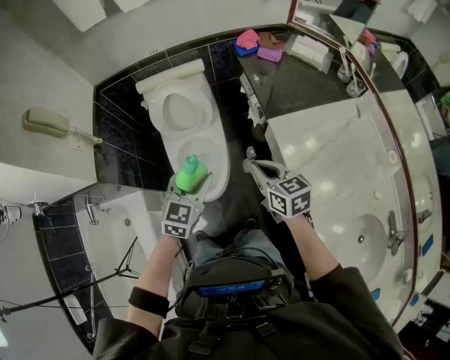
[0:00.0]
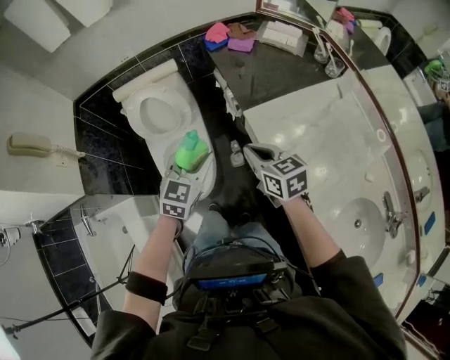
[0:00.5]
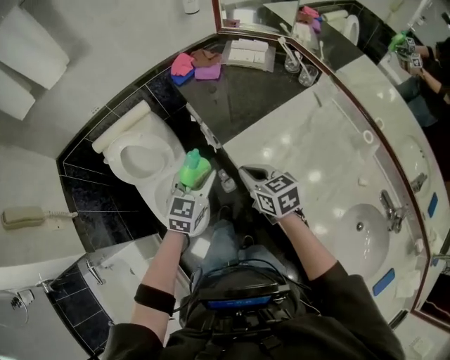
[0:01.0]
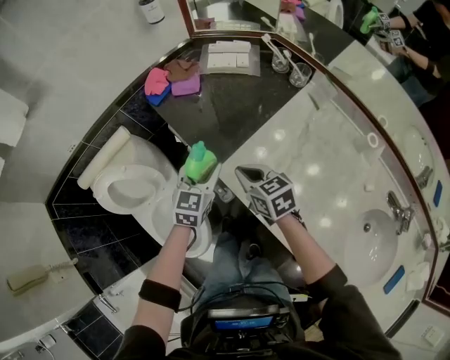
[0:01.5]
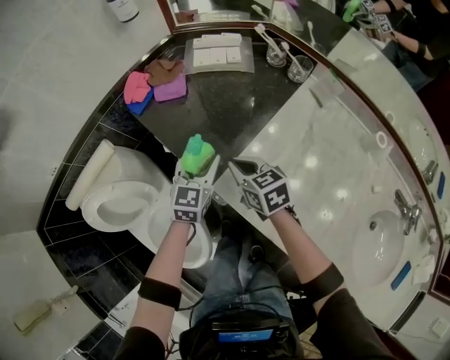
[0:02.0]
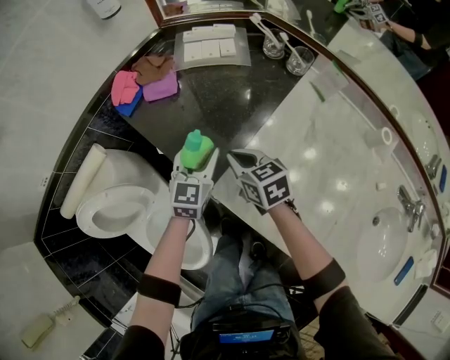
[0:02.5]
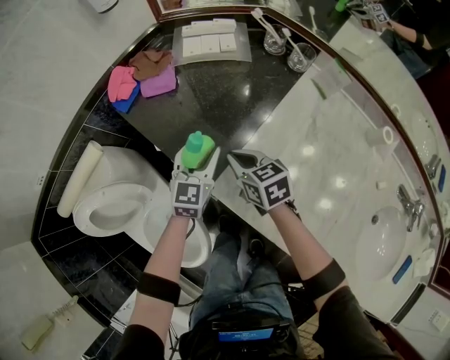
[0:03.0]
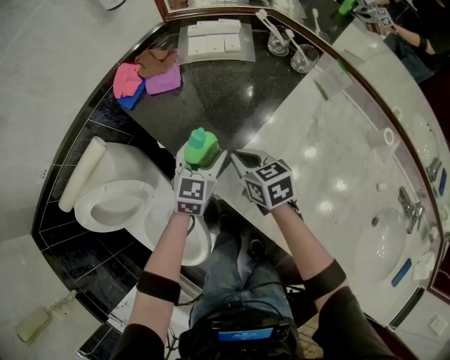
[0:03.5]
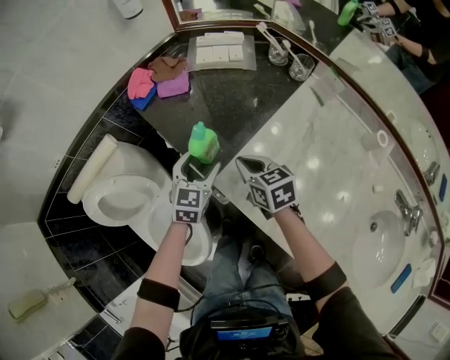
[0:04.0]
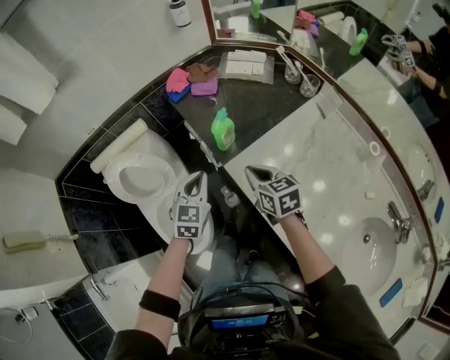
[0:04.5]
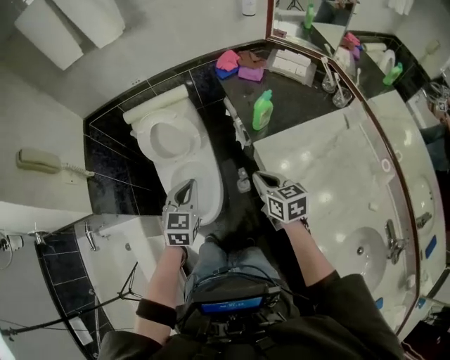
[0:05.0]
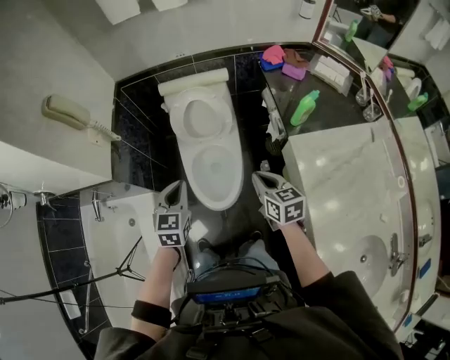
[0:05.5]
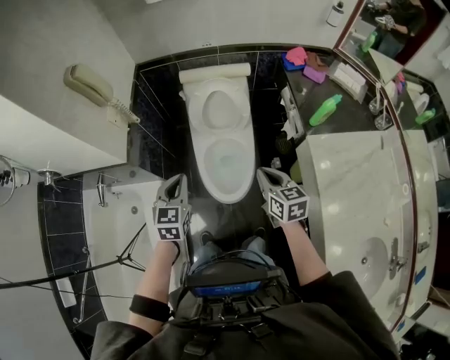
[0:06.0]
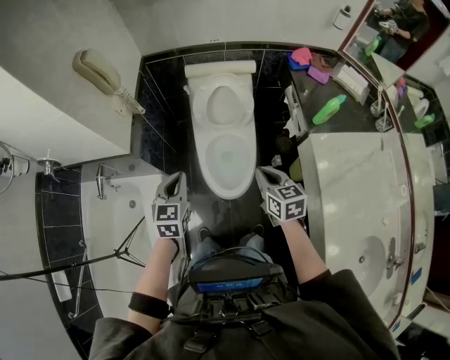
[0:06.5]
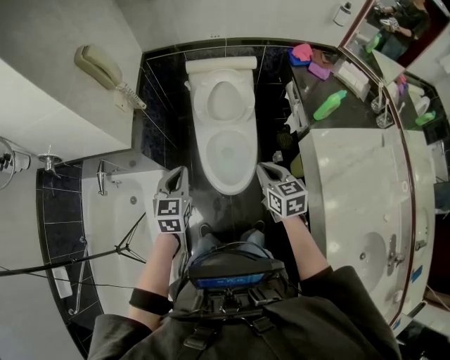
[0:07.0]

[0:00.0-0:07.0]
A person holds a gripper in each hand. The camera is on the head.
0:00.0 to 0:02.0: The left gripper shifts by roughly 50 cm, and turns by some 30 degrees; the right gripper moves approximately 35 cm, and changes its angle by approximately 30 degrees.
0:02.0 to 0:03.5: The left gripper changes place by some 5 cm, and opens its fingers.
0:03.5 to 0:05.0: The right gripper moves approximately 30 cm, and rotates roughly 20 degrees; the left gripper ends up some 40 cm from where it was, turns by roughly 40 degrees, and closes its fingers.
0:05.0 to 0:07.0: Both grippers move to the left, some 30 cm. The left gripper turns by roughly 20 degrees.

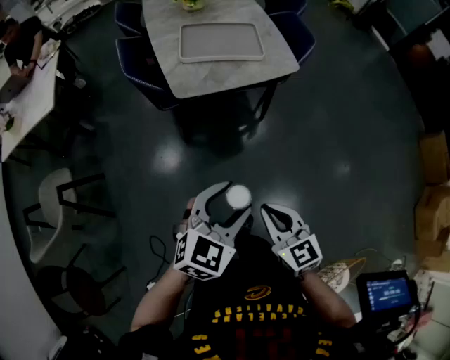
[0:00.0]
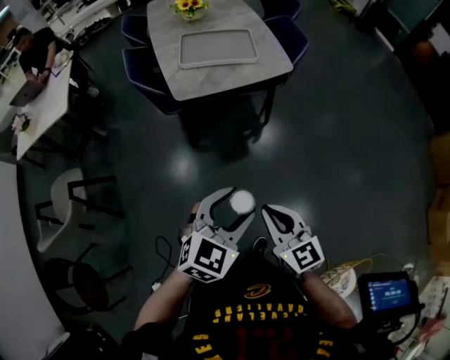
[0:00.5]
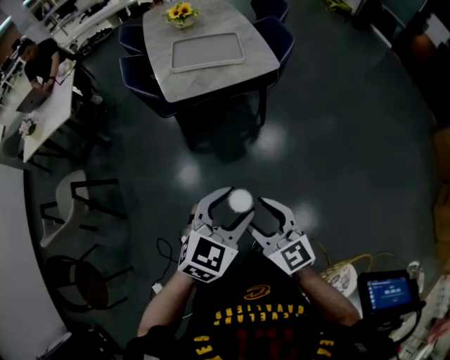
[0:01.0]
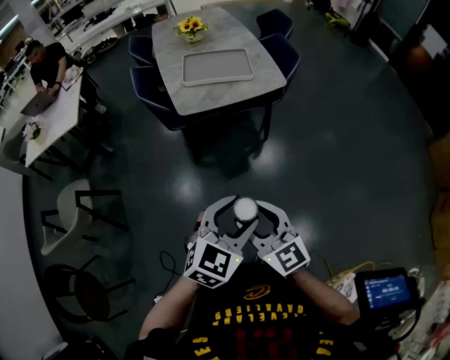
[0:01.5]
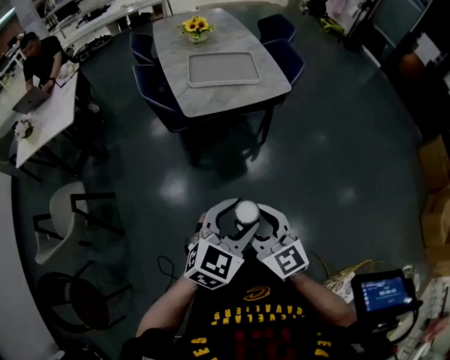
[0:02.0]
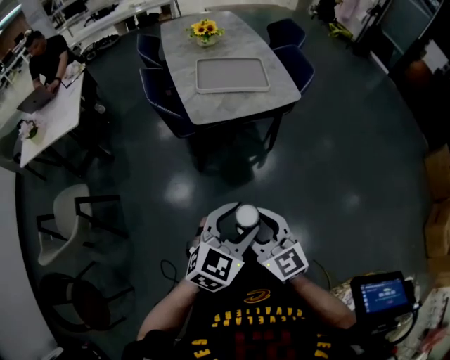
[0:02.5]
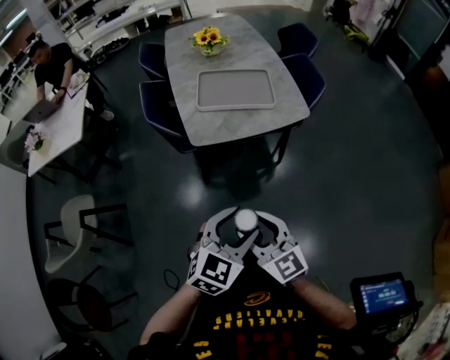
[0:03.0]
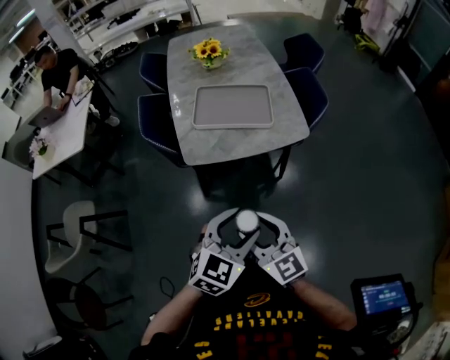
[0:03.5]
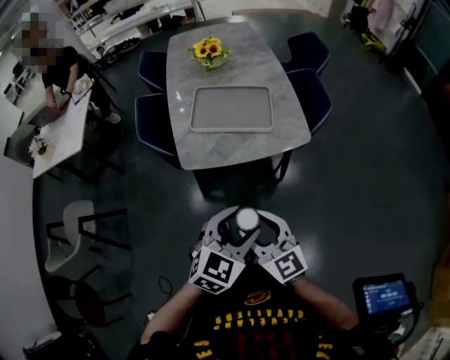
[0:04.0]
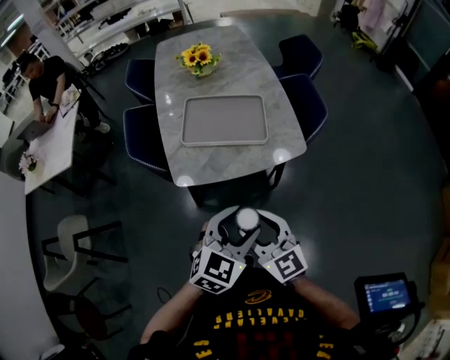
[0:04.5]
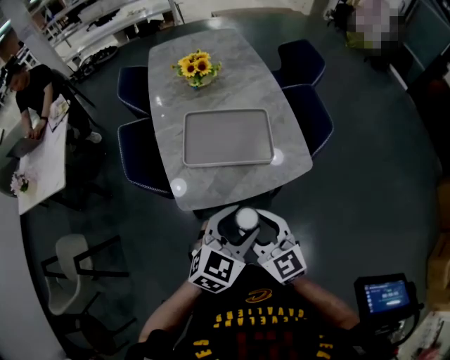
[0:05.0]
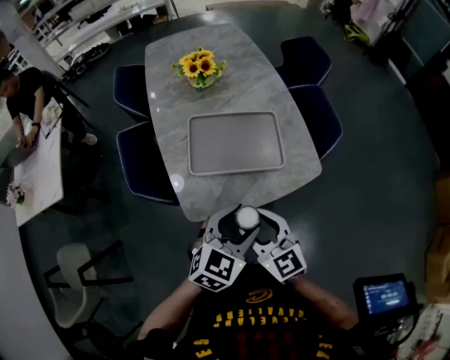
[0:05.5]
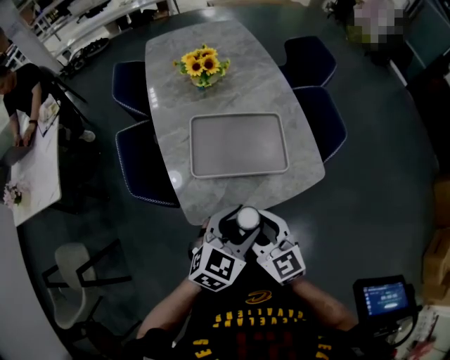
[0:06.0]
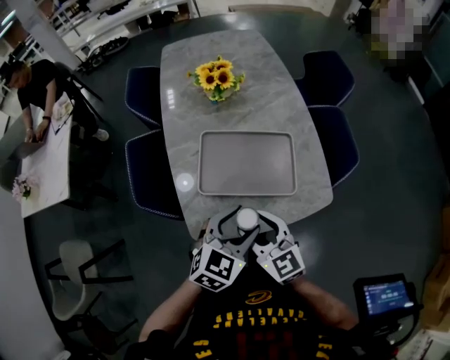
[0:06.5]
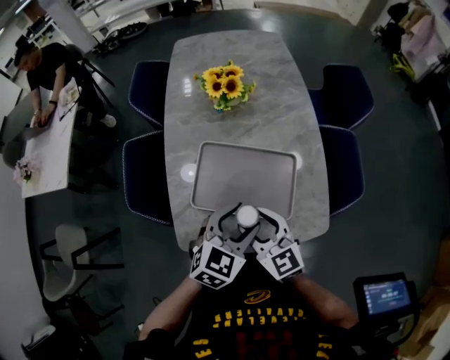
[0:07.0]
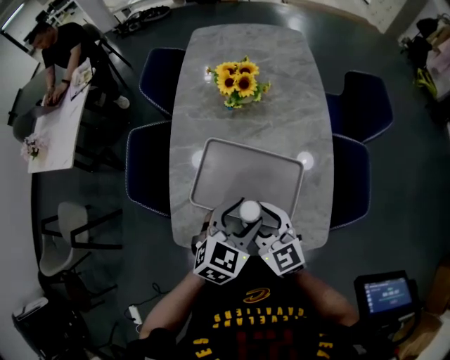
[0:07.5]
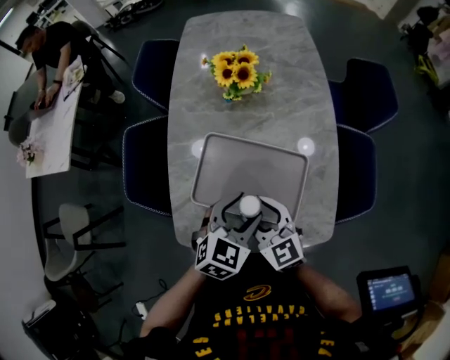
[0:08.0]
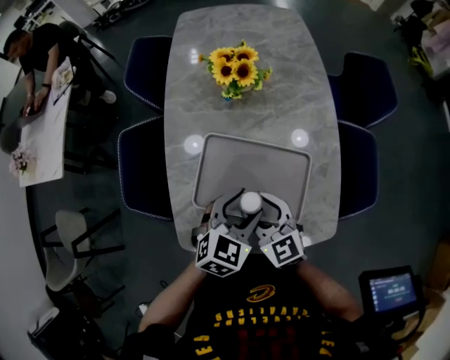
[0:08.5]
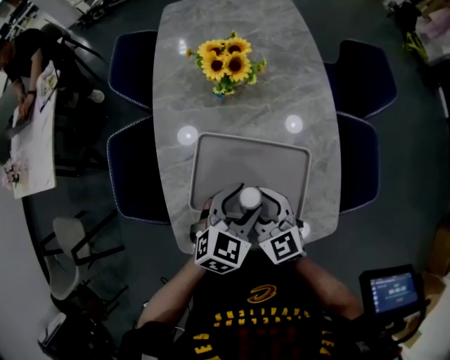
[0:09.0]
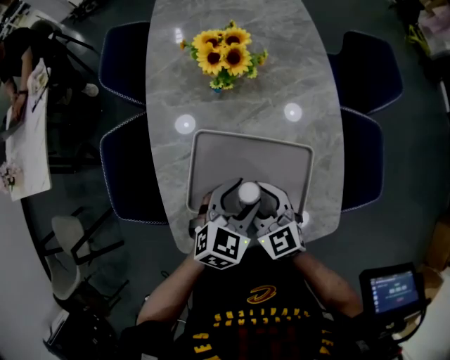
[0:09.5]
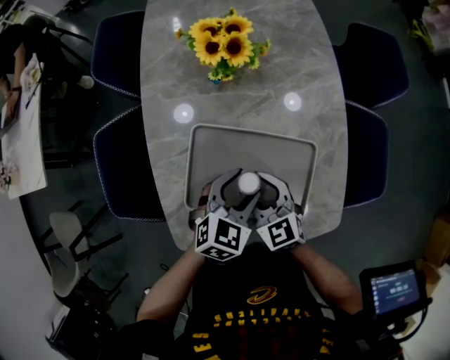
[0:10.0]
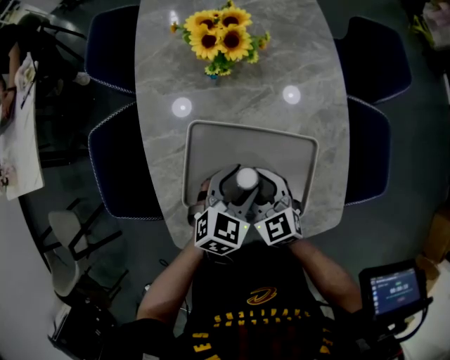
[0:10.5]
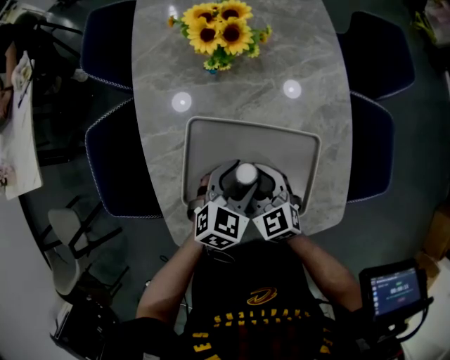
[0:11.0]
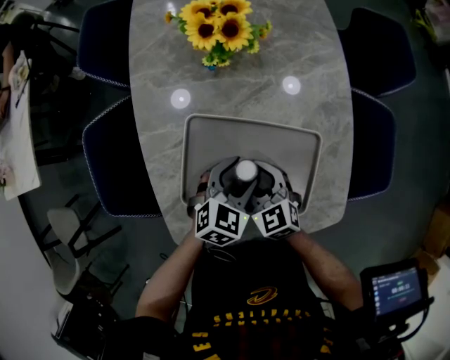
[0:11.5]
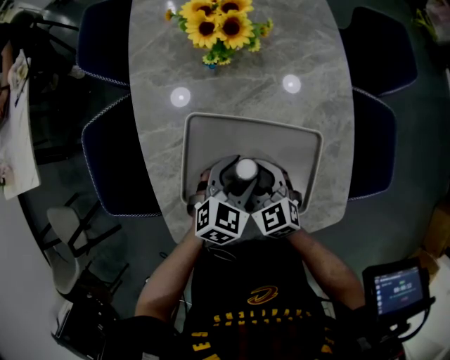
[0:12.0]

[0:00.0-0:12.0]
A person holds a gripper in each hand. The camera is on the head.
0:00.0 to 0:02.0: The left gripper goes about 10 cm backward, and reaches approximately 10 cm to the right, then returns. Meanwhile the right gripper moves to the left, upward and backward, roughly 10 cm, and opens.
0:02.0 to 0:04.0: The two grippers go about 30 cm forward and to the right.
0:04.0 to 0:06.0: Both grippers move forward and to the left, some 25 cm.
0:06.0 to 0:08.0: Both grippers travel together forward, approximately 20 cm. The right gripper swivels approximately 20 degrees. The left gripper changes its angle by approximately 20 degrees.
0:08.0 to 0:10.0: The grippers both shift downward and forward by approximately 10 cm.
0:10.0 to 0:12.0: The grippers move only a little.

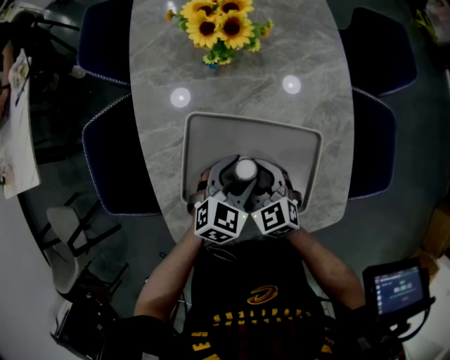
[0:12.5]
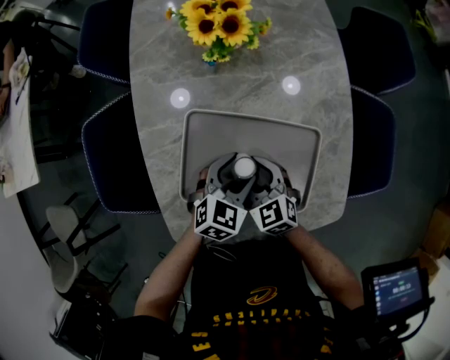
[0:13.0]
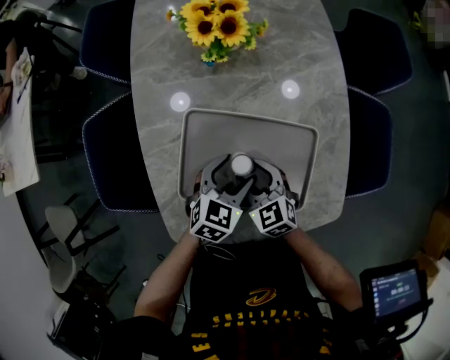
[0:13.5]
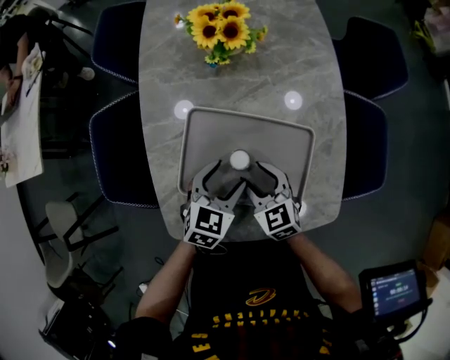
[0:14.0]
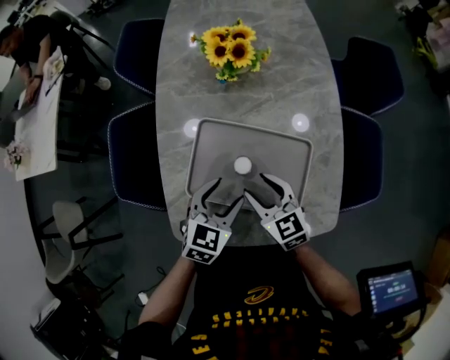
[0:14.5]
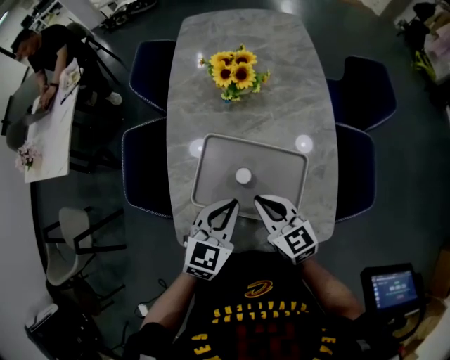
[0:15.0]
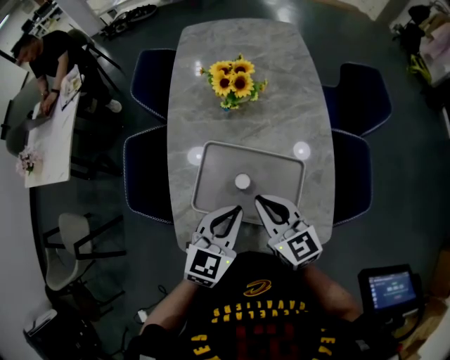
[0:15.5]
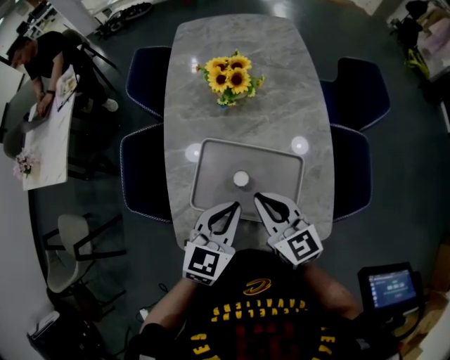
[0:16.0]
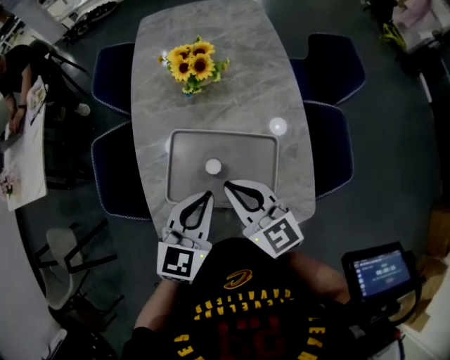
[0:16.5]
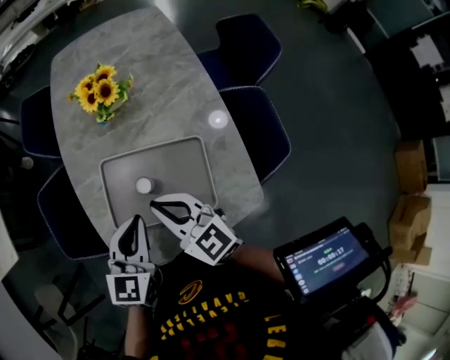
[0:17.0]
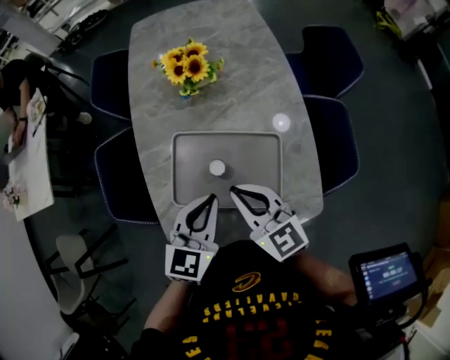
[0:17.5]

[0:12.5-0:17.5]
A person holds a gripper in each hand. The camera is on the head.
0:12.5 to 0:15.0: The left gripper shifts approximately 15 cm upward and backward, rotates some 20 degrees, and closes its fingers, while the right gripper goes approximately 15 cm upward, rotates roughly 20 degrees, and closes its fingers.
0:15.0 to 0:17.5: The right gripper is displaced upward by about 5 cm.

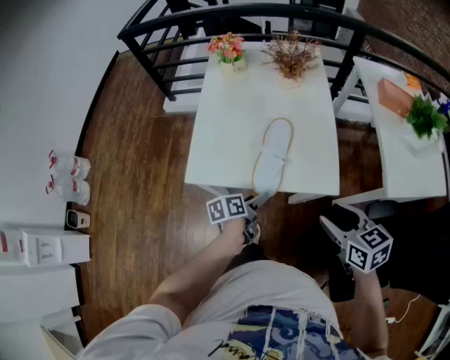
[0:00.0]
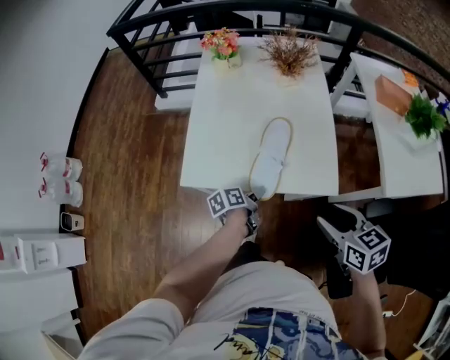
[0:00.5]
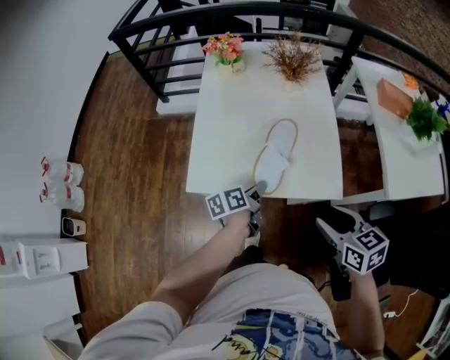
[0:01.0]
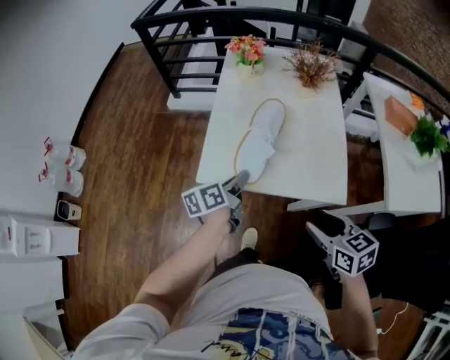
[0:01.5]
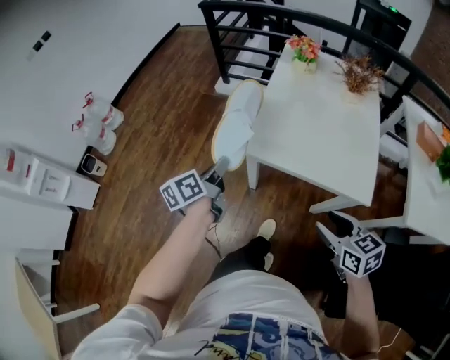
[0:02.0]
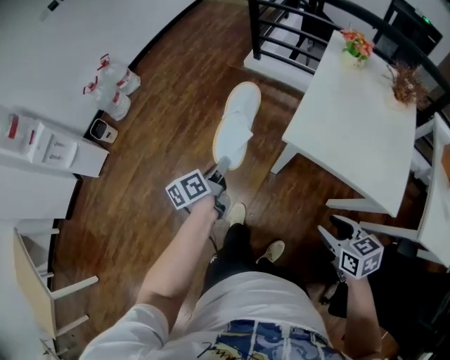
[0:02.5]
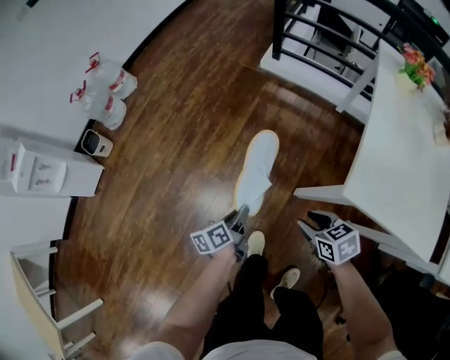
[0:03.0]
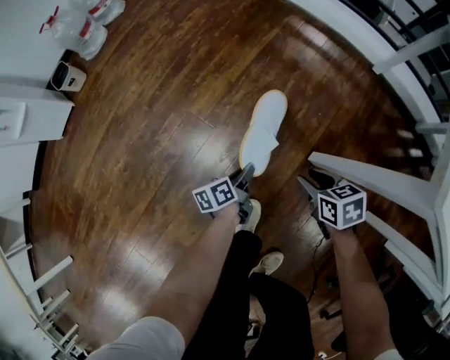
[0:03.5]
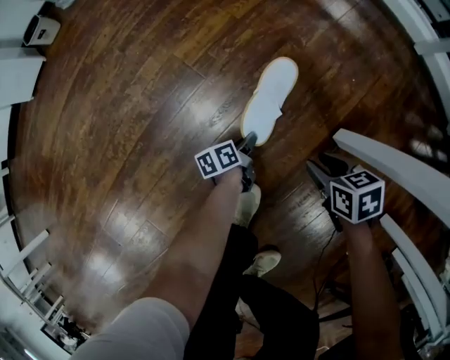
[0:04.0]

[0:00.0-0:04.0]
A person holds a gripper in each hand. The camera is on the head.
0:00.0 to 0:02.0: The left gripper ends up some 35 cm from where it was, rotates about 40 degrees, and closes its fingers. The right gripper changes place by some 15 cm.
0:02.0 to 0:04.0: The two grippers go some 90 cm downward. The left gripper swivels about 40 degrees, while the right gripper swivels some 40 degrees.
